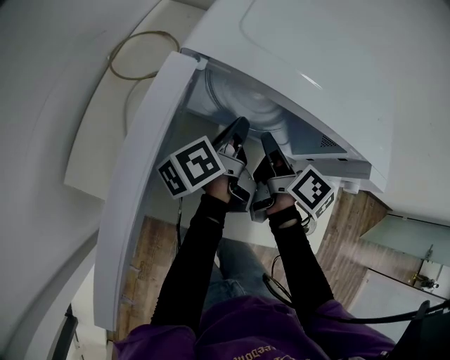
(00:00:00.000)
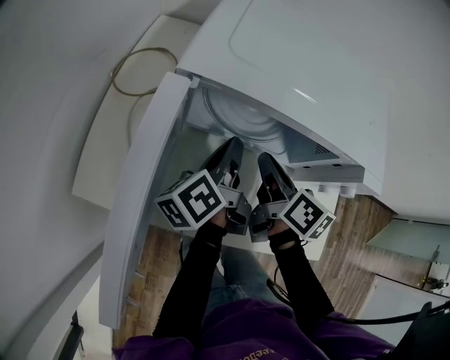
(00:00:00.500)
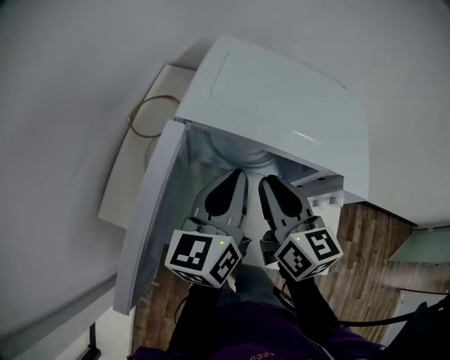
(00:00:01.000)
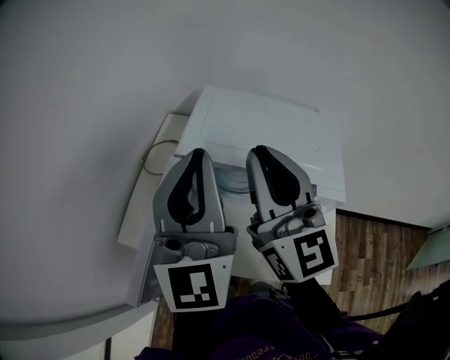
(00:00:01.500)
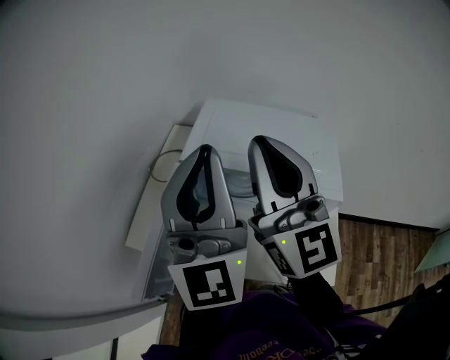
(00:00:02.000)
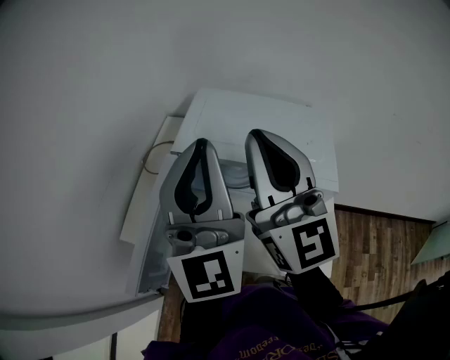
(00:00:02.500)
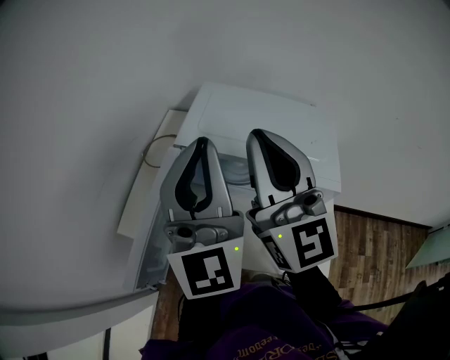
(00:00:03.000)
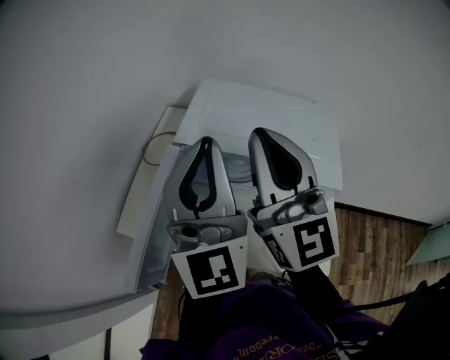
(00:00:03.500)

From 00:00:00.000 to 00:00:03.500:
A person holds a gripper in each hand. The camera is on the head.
From 00:00:00.000 to 00:00:02.000: Both grippers move upward, roughly 40 cm. The right gripper rotates around the line of its fingers by about 60 degrees, counterclockwise from behind. The left gripper twists approximately 90 degrees clockwise, seen from behind.
From 00:00:02.000 to 00:00:03.500: The grippers stay close to where they were, moving slightly.

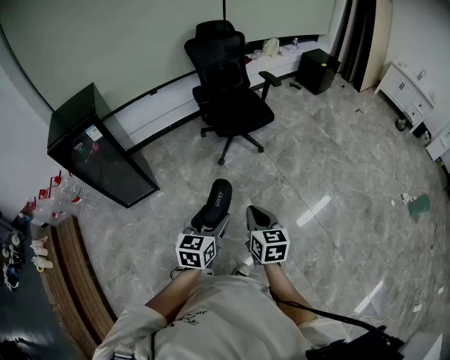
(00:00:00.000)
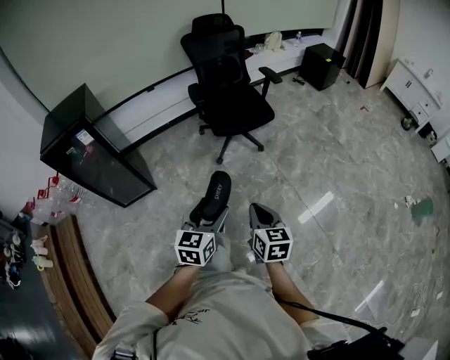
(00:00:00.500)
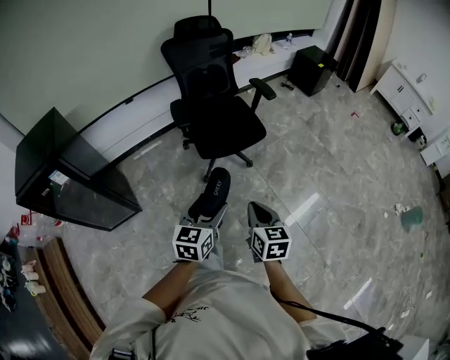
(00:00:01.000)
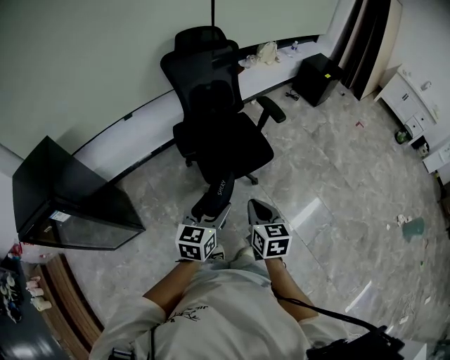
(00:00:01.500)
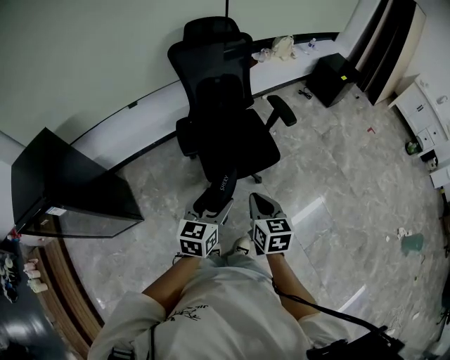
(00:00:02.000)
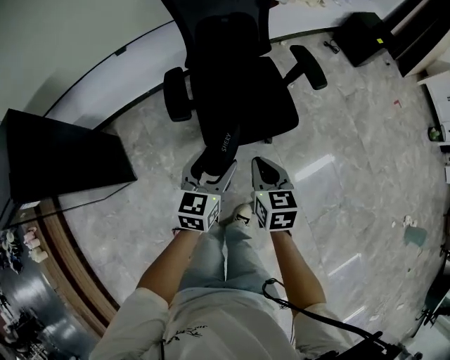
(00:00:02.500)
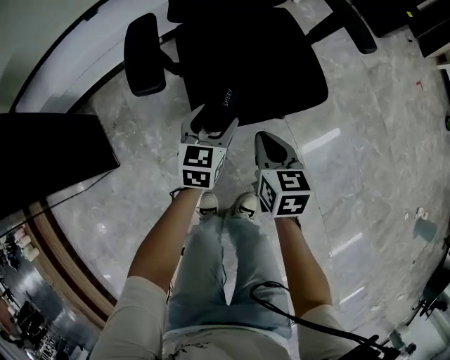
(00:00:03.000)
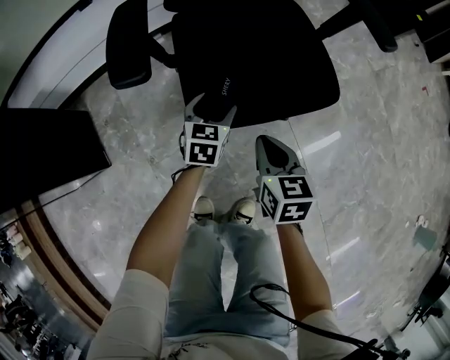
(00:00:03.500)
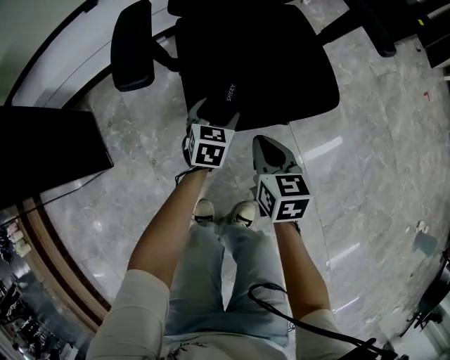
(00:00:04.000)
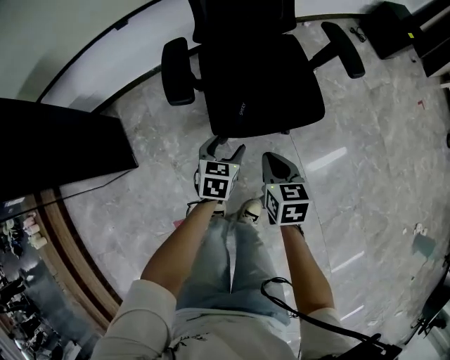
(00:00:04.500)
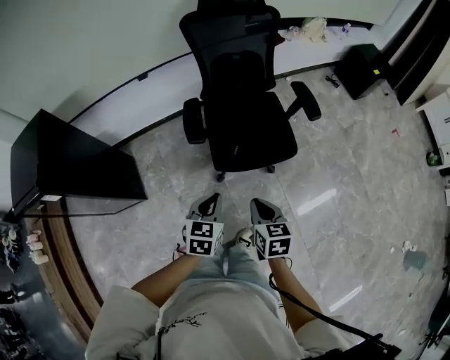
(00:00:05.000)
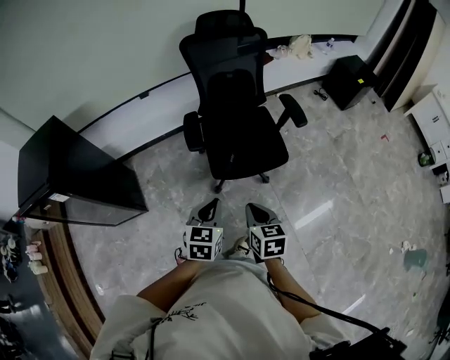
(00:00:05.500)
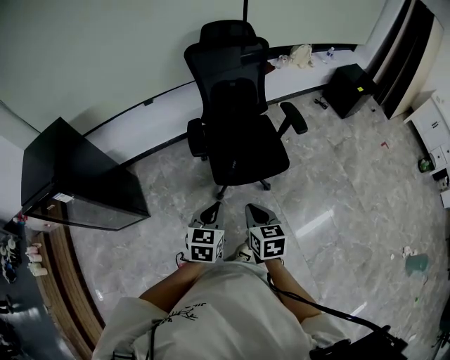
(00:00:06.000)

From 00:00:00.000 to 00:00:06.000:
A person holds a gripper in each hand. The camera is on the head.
From 00:00:00.000 to 00:00:02.000: The pair of grippers is taken forward, roughly 50 cm.
From 00:00:02.000 to 00:00:04.000: Both grippers travel together downward and forward, some 50 cm. The left gripper changes its angle by roughly 20 degrees.
From 00:00:04.000 to 00:00:06.000: The grippers both shift upward and backward by about 50 cm. The left gripper closes.

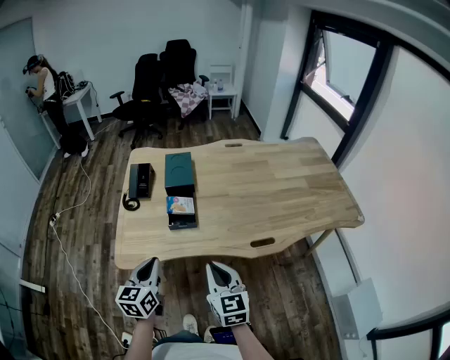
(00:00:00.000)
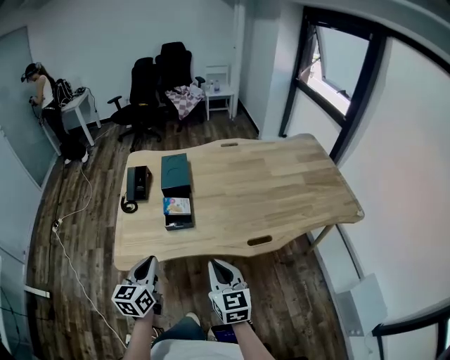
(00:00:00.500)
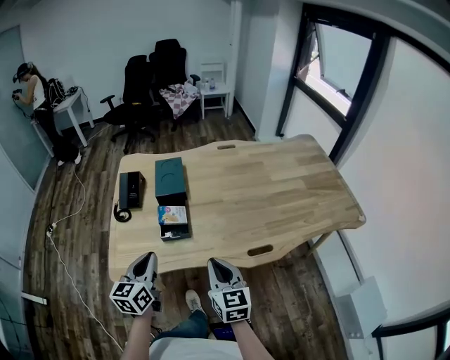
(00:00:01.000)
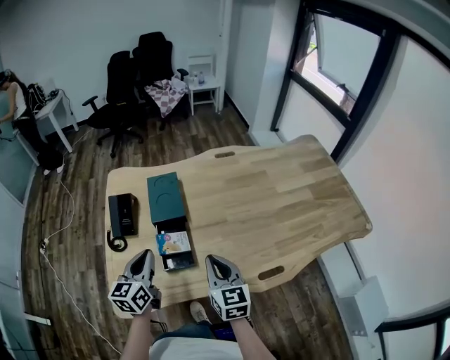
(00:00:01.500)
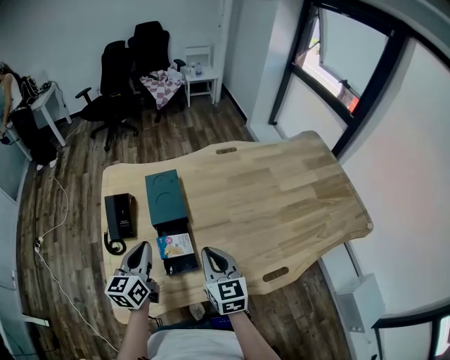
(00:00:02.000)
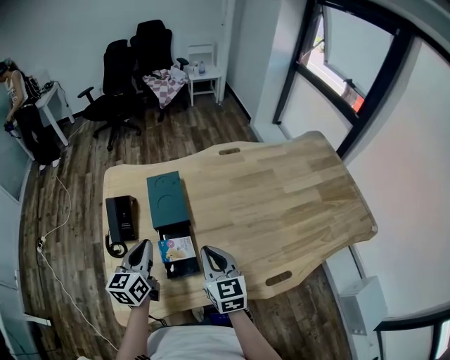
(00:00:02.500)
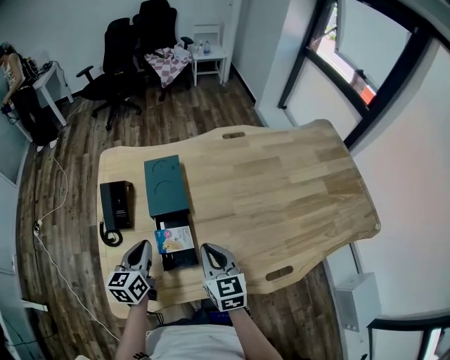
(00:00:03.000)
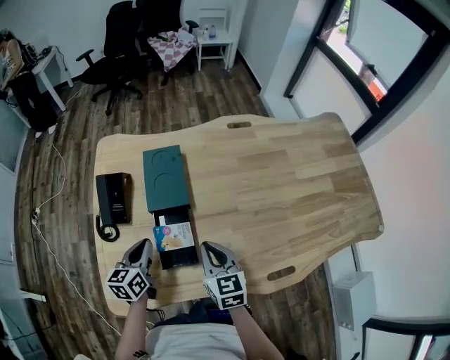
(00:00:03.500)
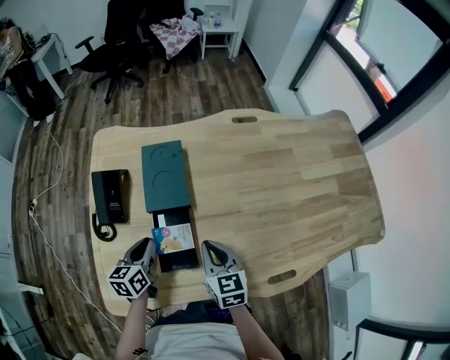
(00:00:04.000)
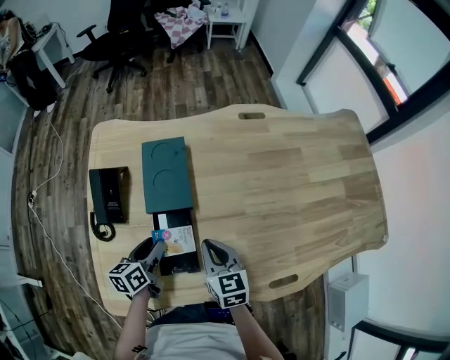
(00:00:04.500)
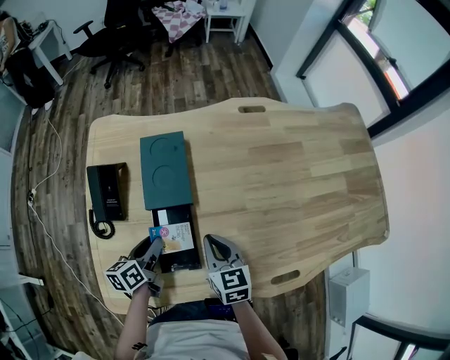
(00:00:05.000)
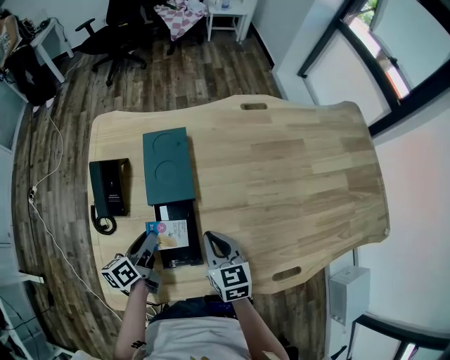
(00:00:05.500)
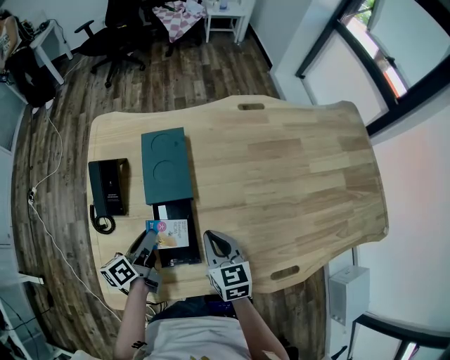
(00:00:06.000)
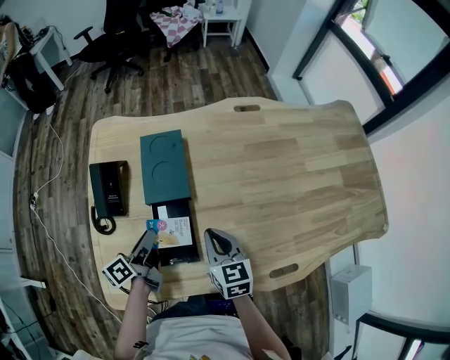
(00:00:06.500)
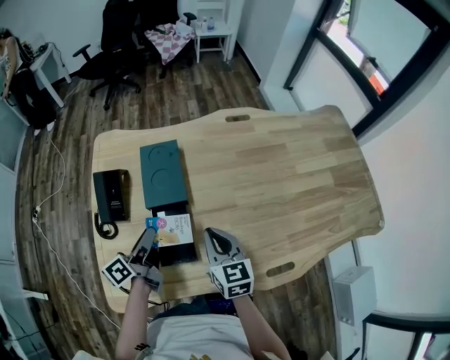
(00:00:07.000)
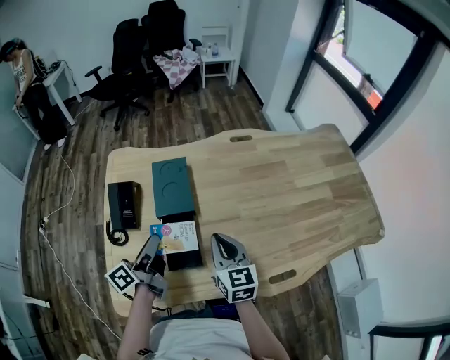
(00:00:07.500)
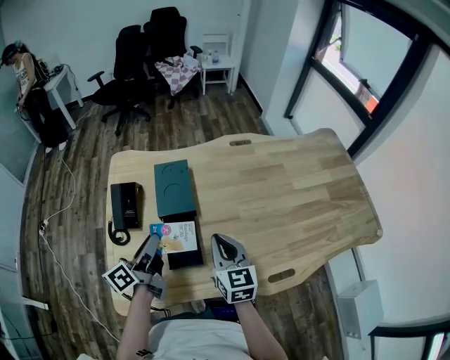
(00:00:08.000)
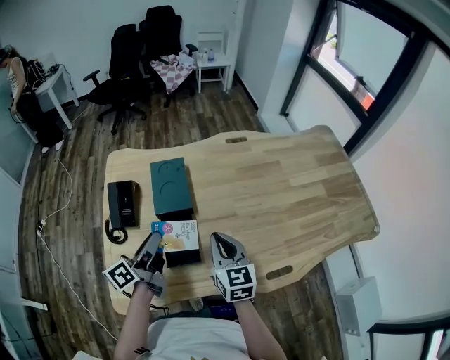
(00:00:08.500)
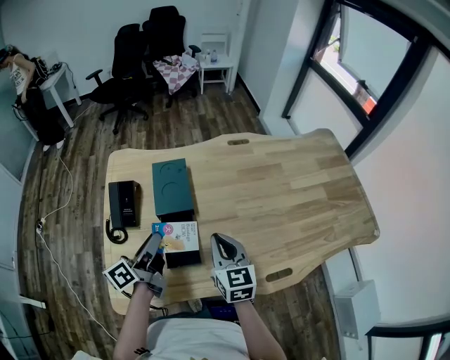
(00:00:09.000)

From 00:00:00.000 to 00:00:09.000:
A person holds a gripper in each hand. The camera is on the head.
From 00:00:00.000 to 00:00:02.000: Both grippers move forward, about 30 cm.
From 00:00:02.000 to 00:00:04.500: The right gripper heads downward and forward, covering roughly 15 cm, while the left gripper goes roughly 20 cm downward, changes its angle by about 30 degrees, and opens up.
From 00:00:04.500 to 00:00:07.000: The left gripper goes roughly 10 cm upward, and rotates some 30 degrees. The right gripper travels upward by about 5 cm.
From 00:00:07.000 to 00:00:09.000: The two grippers go roughly 5 cm upward.

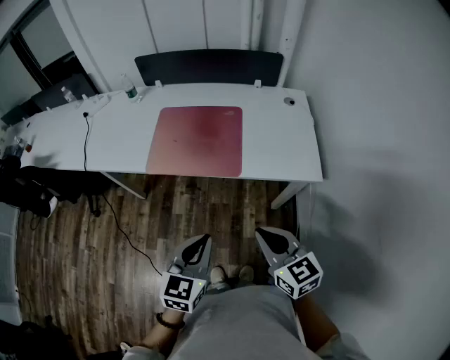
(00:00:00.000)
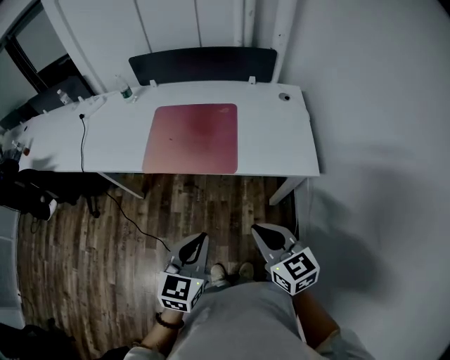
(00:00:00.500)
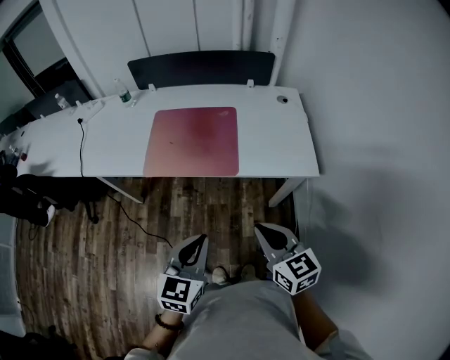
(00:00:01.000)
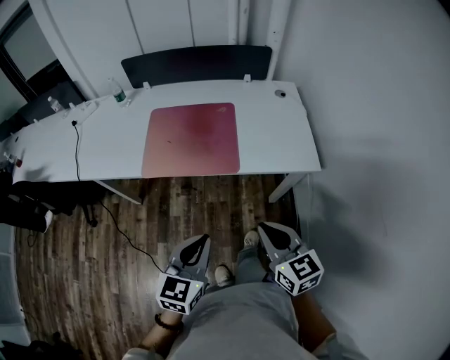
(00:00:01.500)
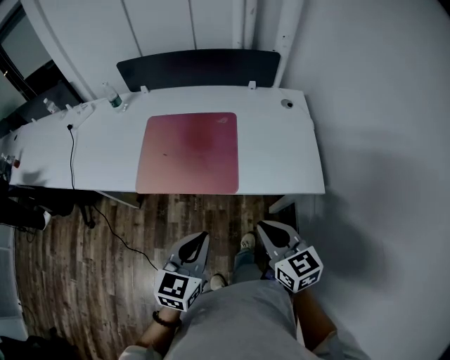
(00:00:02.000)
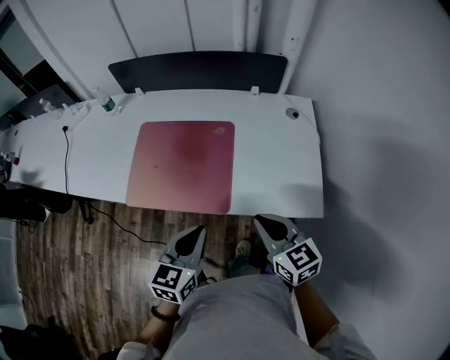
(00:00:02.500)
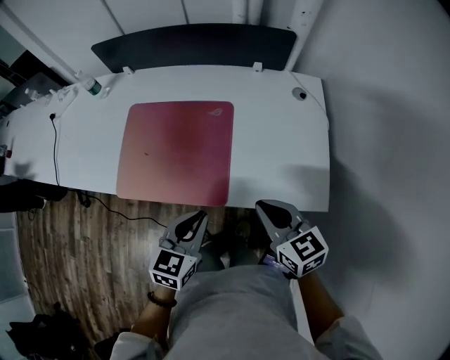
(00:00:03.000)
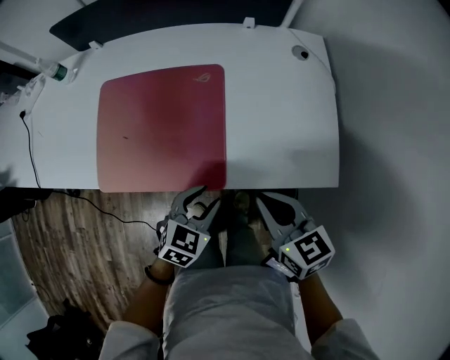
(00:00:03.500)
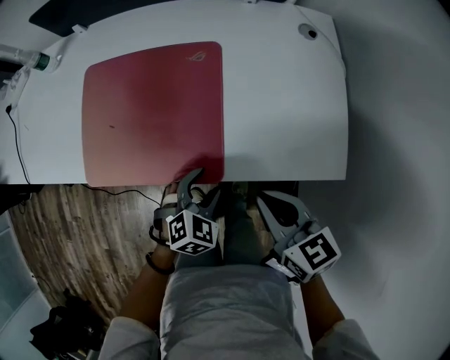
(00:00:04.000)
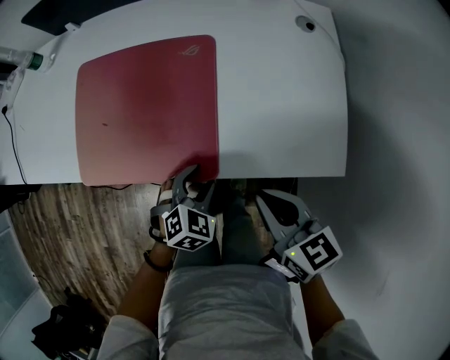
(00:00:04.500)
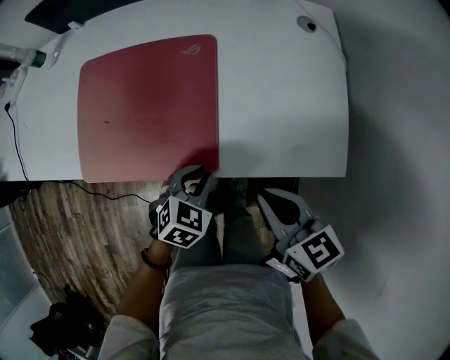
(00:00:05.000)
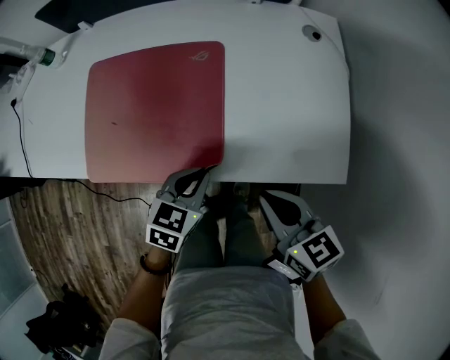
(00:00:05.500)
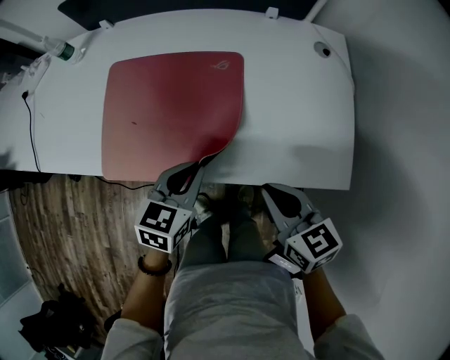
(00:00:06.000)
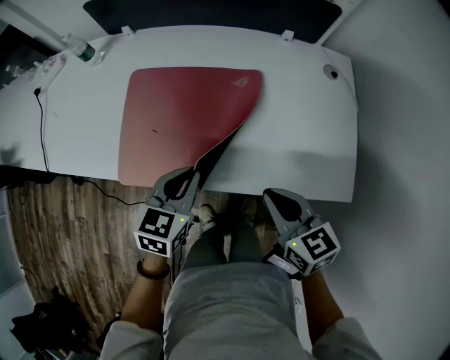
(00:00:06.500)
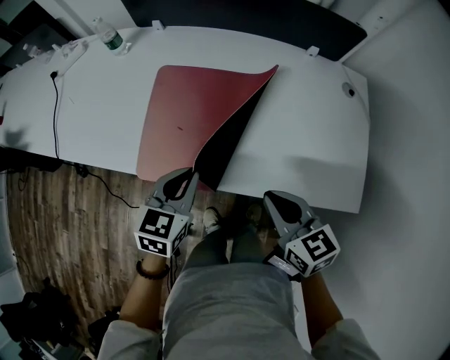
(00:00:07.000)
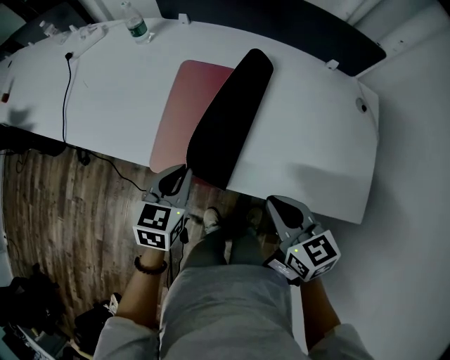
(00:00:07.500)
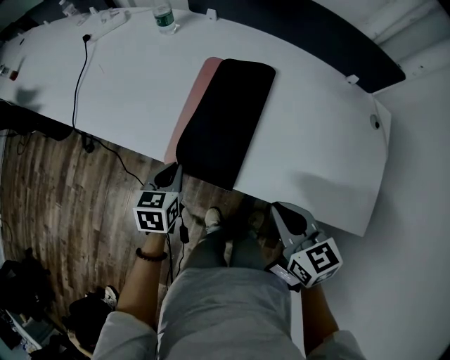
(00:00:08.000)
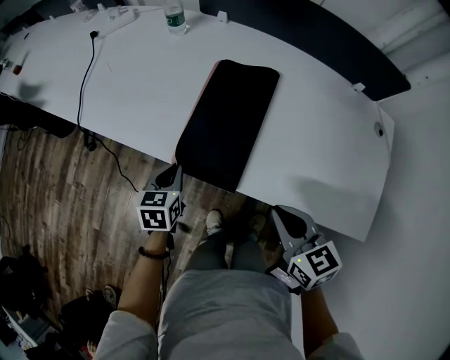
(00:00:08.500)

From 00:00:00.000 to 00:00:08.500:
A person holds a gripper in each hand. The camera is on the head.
From 00:00:00.000 to 00:00:02.000: The grippers both shift forward by approximately 10 cm.
From 00:00:02.000 to 00:00:04.000: The left gripper shifts some 30 cm downward and forward, angles its fingers downward, by approximately 30 degrees, and opens, while the right gripper travels forward and downward by roughly 20 cm.
From 00:00:04.000 to 00:00:06.500: The right gripper travels to the left by about 5 cm, while the left gripper moves to the left, upward and forward, roughly 20 cm, changes its angle by roughly 40 degrees, and closes up.
From 00:00:06.500 to 00:00:08.500: The right gripper heads to the left, covering approximately 15 cm, while the left gripper moves to the left, roughly 25 cm, and rotates approximately 30 degrees.
